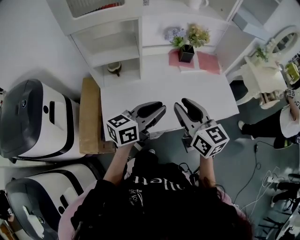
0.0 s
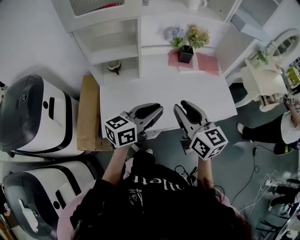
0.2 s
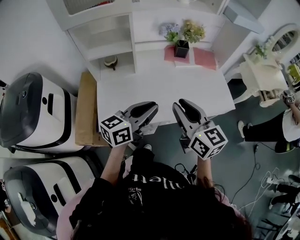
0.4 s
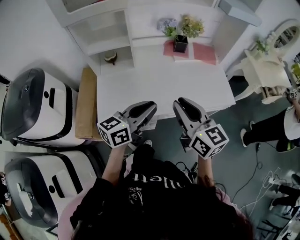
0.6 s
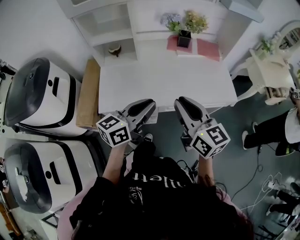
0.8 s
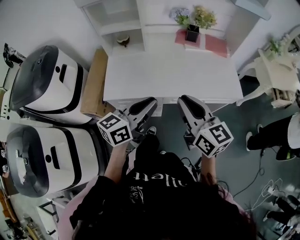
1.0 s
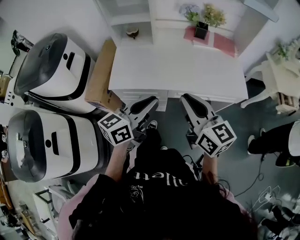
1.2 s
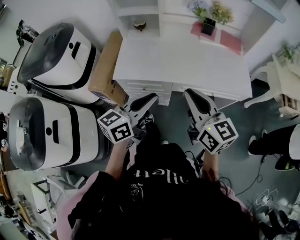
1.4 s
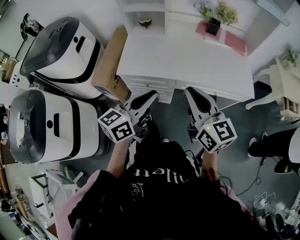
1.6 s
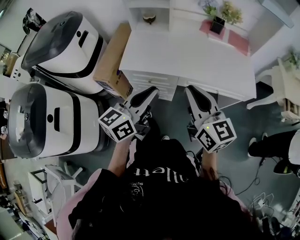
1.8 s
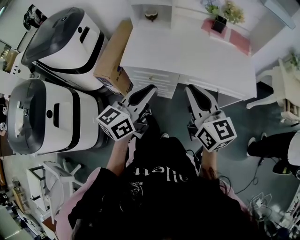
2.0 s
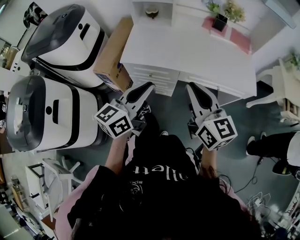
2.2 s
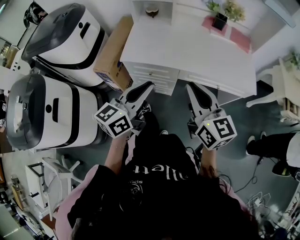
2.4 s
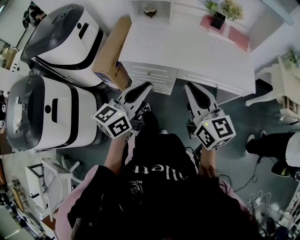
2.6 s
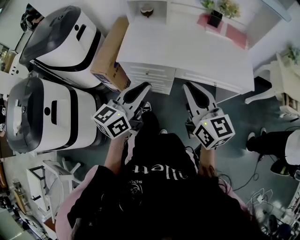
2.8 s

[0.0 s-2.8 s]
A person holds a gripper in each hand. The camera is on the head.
0.0 to 1.4 s: The left gripper heads backward, covering about 25 cm, and turns by approximately 20 degrees; the right gripper goes some 25 cm backward and to the right, and closes.
1.4 to 2.8 s: The grippers both shift backward by some 5 cm.

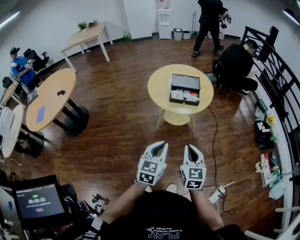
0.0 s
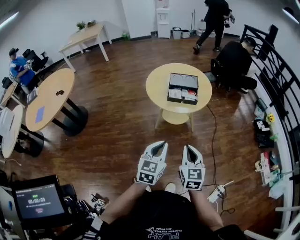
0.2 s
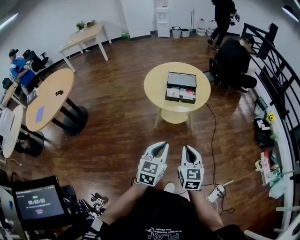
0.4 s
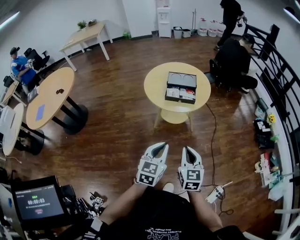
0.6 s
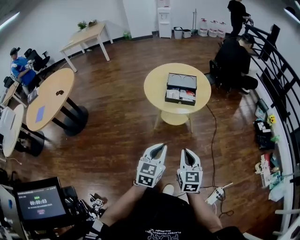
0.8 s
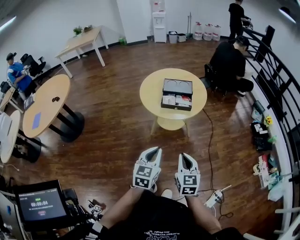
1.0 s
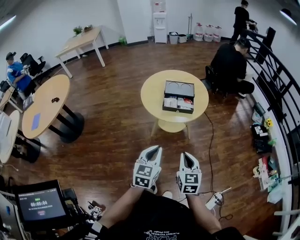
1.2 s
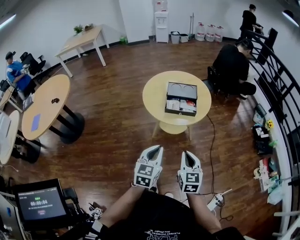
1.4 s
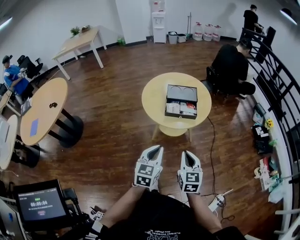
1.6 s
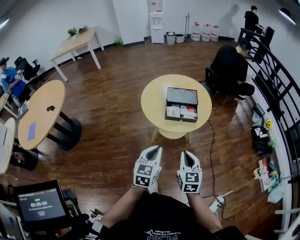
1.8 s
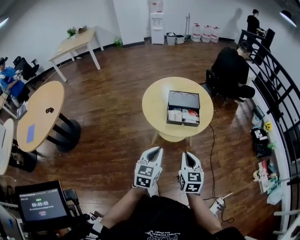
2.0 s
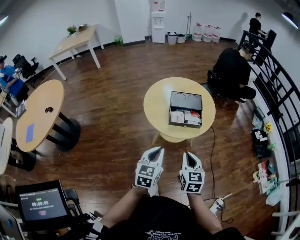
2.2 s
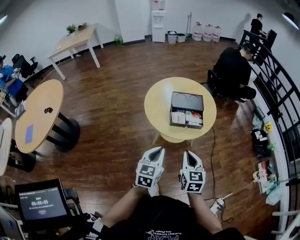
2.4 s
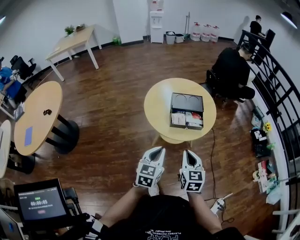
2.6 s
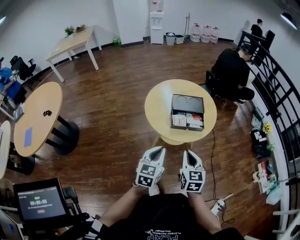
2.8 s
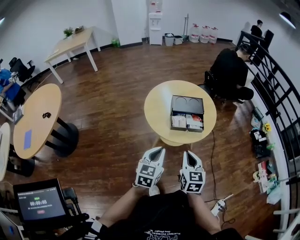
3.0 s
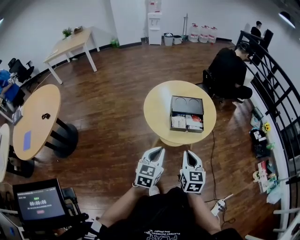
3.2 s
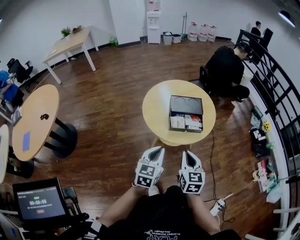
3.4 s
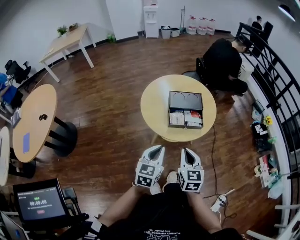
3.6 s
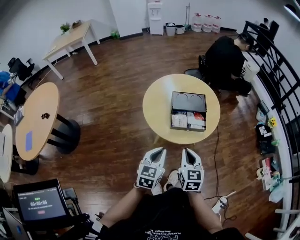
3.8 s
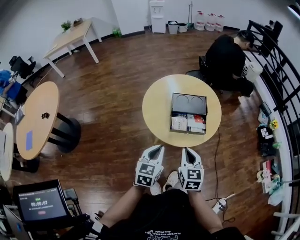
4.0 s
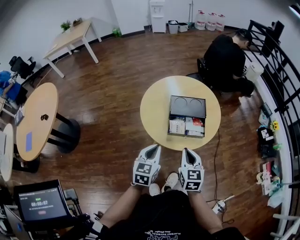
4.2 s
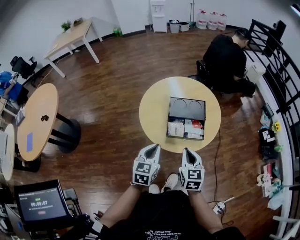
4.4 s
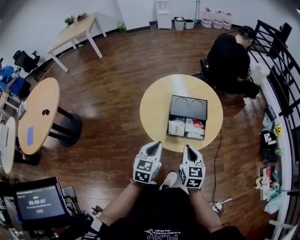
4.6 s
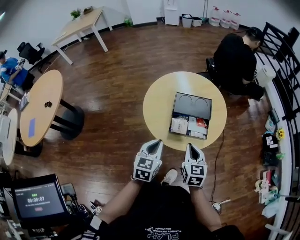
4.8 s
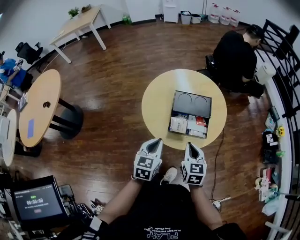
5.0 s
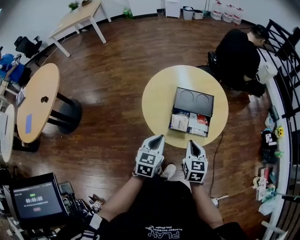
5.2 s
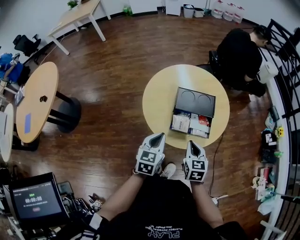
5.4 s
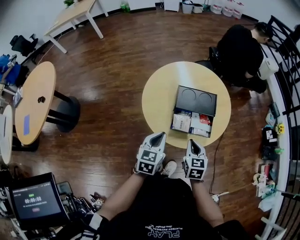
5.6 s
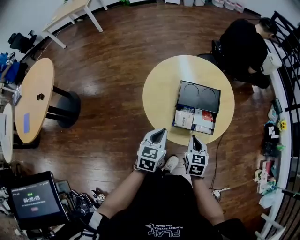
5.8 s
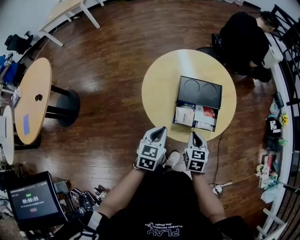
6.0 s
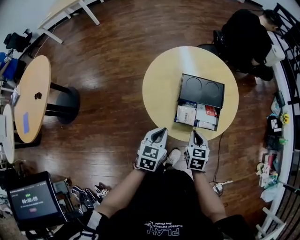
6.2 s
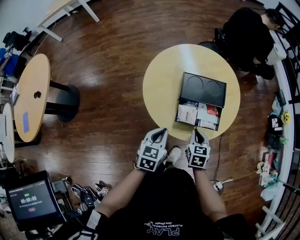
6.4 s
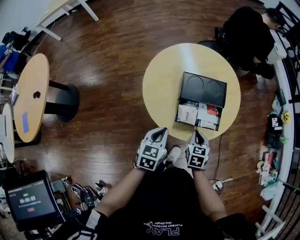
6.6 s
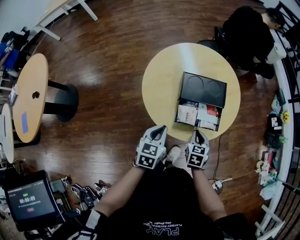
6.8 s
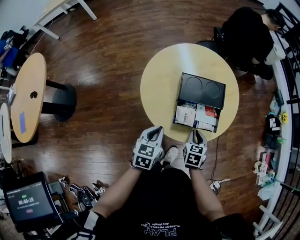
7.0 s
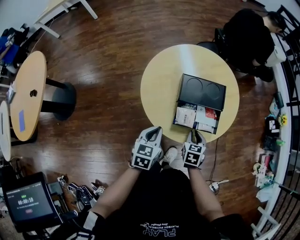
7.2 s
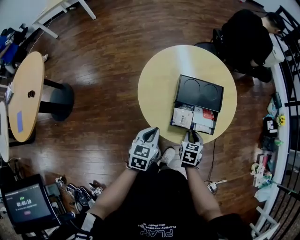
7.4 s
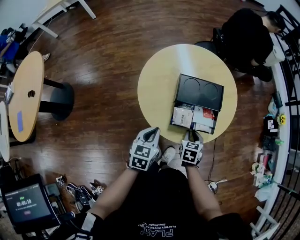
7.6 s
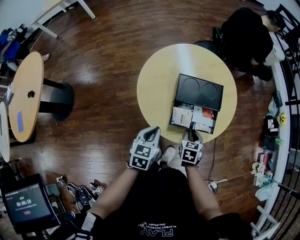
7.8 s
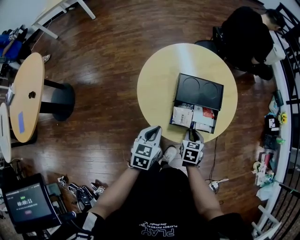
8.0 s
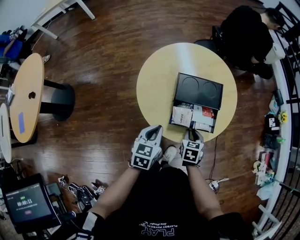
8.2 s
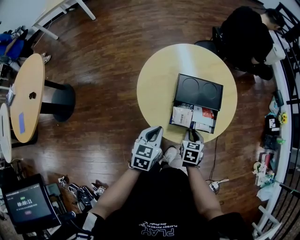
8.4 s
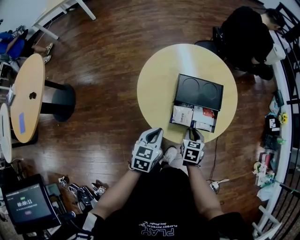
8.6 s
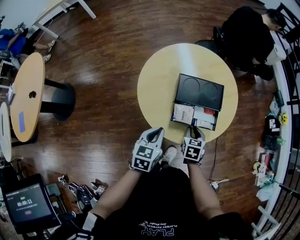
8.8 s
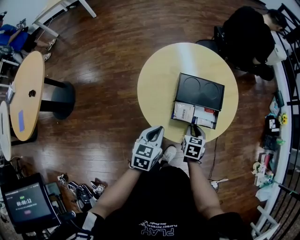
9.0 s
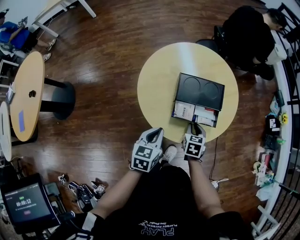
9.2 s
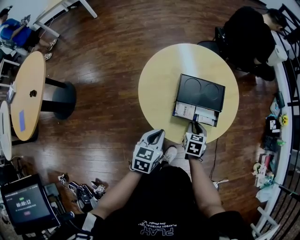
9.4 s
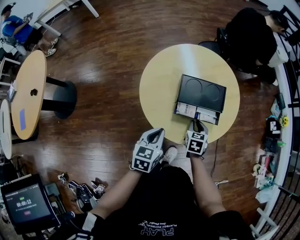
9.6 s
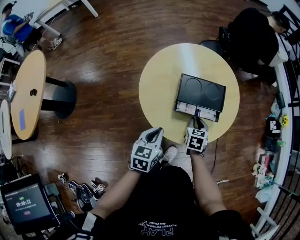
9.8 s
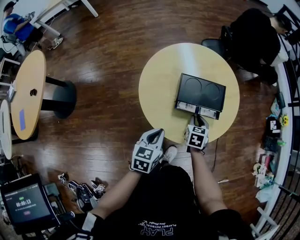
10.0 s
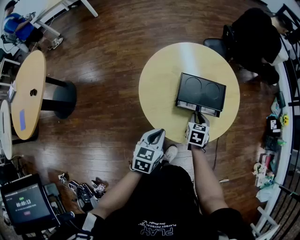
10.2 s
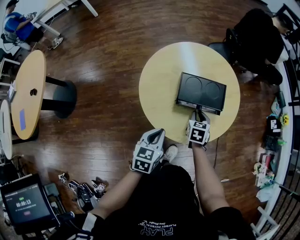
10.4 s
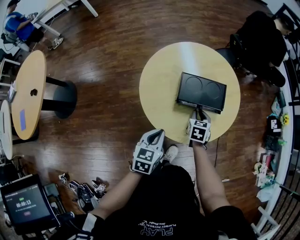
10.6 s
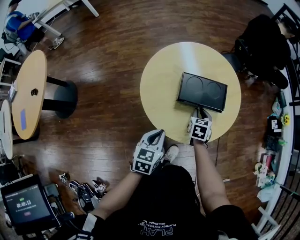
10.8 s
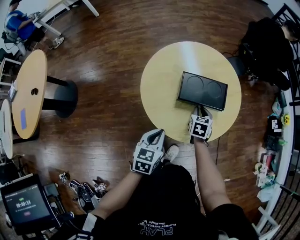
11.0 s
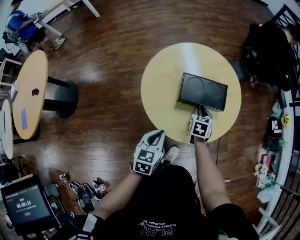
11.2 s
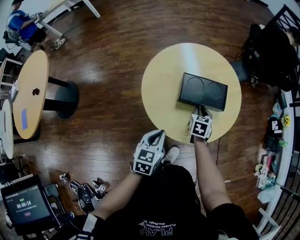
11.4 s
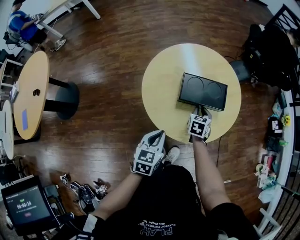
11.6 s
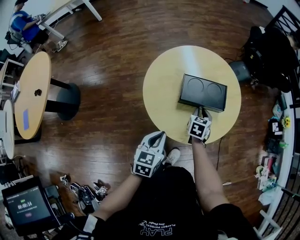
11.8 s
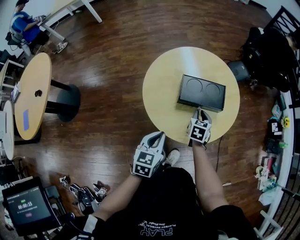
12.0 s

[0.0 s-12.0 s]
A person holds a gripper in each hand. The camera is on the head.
0.0 to 1.6 s: The grippers both shift forward by approximately 10 cm.
1.6 to 3.0 s: Both grippers move forward and to the left, approximately 10 cm.
3.0 to 4.4 s: Both grippers travel together forward, about 15 cm.
4.4 to 6.0 s: The grippers both shift downward and forward by some 15 cm.
6.0 to 7.6 s: The right gripper moves downward, some 10 cm.
7.6 to 9.0 s: The grippers stay close to where they were, moving slightly.
9.0 to 10.4 s: The right gripper travels forward by some 5 cm.
10.4 to 12.0 s: The grippers stay close to where they were, moving slightly.

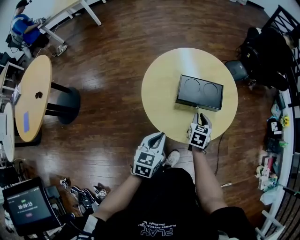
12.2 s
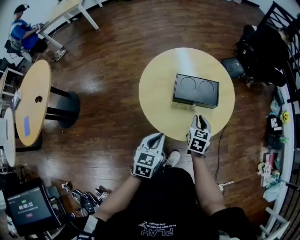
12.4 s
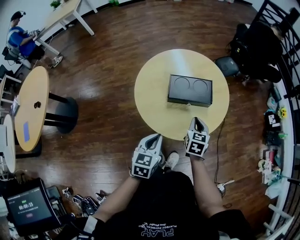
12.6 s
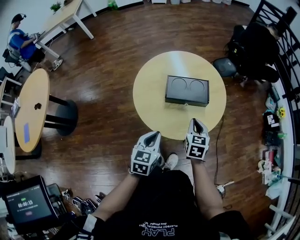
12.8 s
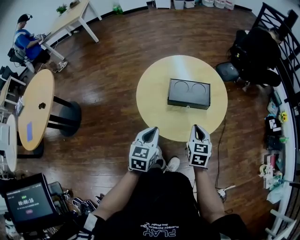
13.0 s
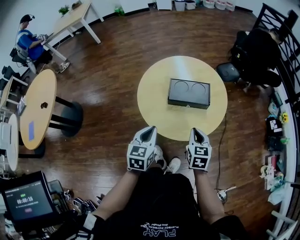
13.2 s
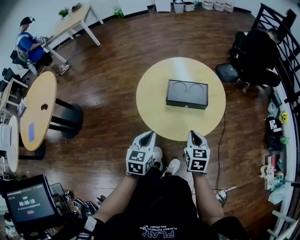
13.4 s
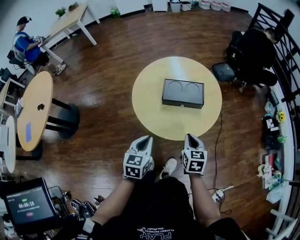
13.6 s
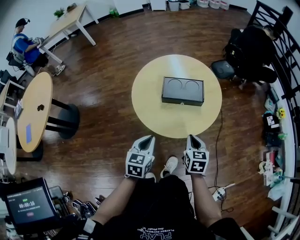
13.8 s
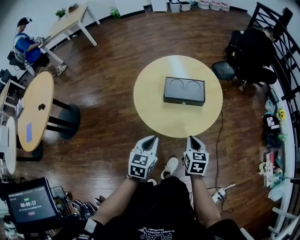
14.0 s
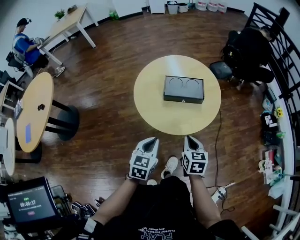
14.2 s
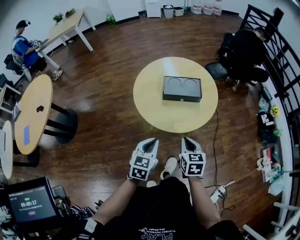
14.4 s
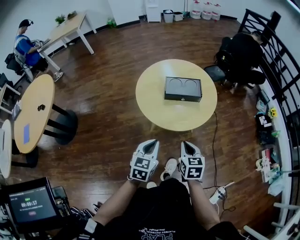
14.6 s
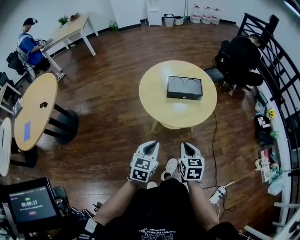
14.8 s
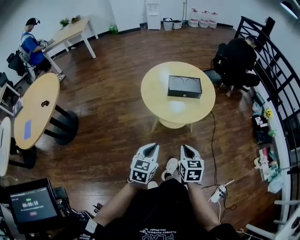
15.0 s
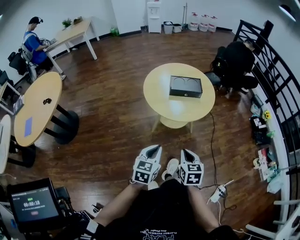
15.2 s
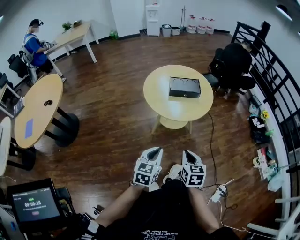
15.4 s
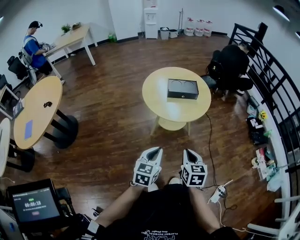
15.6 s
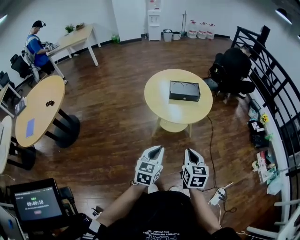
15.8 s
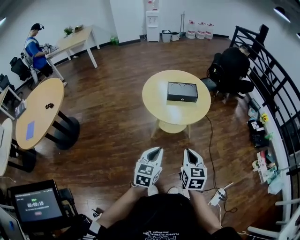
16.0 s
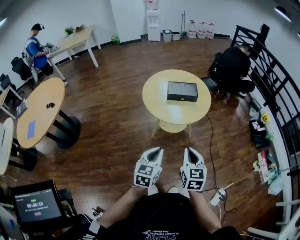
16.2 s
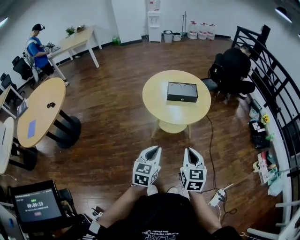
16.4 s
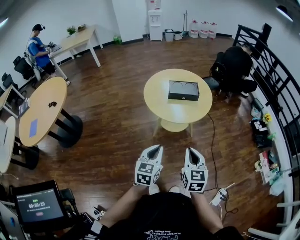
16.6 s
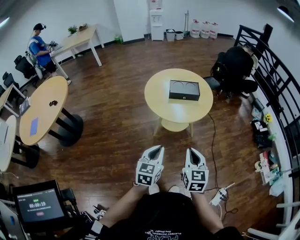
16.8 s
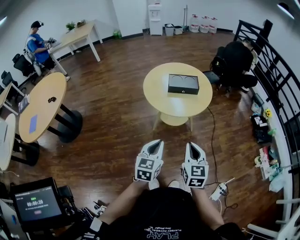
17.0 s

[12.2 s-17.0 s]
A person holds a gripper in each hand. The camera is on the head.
12.2 to 13.8 s: The left gripper goes some 5 cm backward; the right gripper moves backward and upward, roughly 20 cm.
13.8 to 15.4 s: Both grippers move backward, approximately 30 cm.
15.4 to 17.0 s: The right gripper moves upward, about 5 cm.

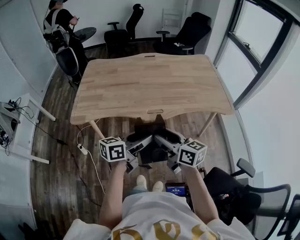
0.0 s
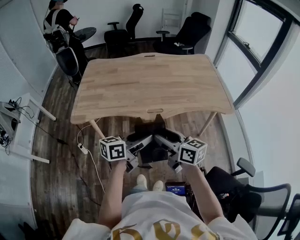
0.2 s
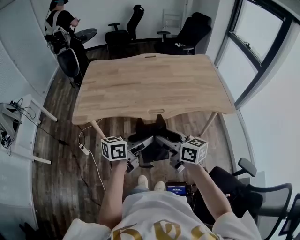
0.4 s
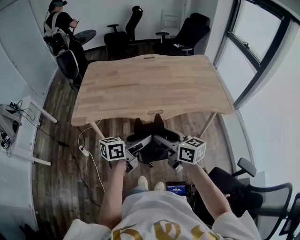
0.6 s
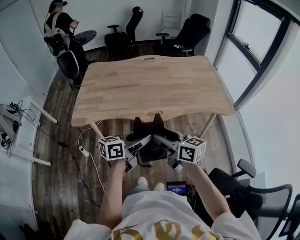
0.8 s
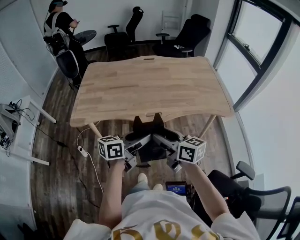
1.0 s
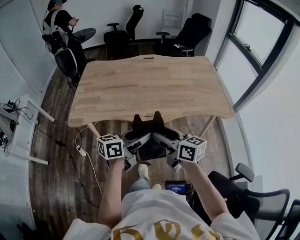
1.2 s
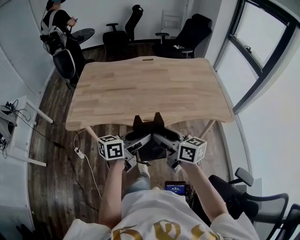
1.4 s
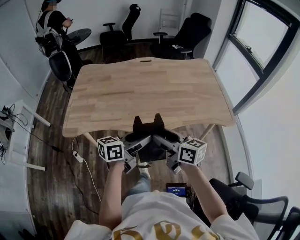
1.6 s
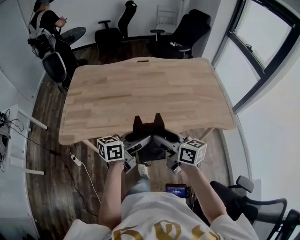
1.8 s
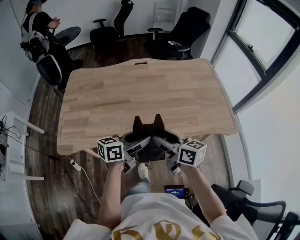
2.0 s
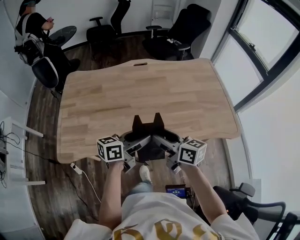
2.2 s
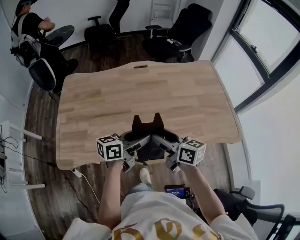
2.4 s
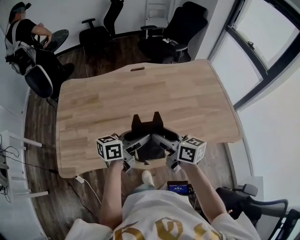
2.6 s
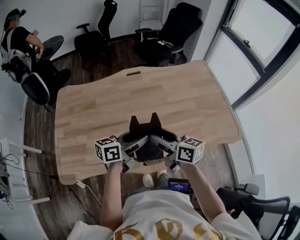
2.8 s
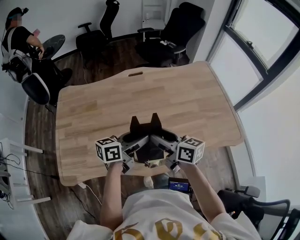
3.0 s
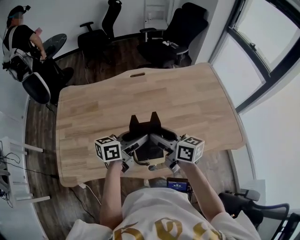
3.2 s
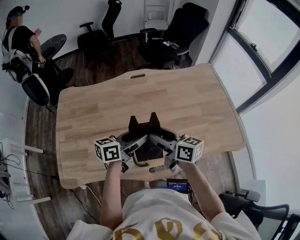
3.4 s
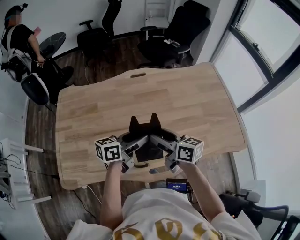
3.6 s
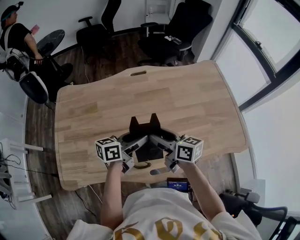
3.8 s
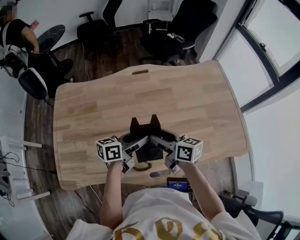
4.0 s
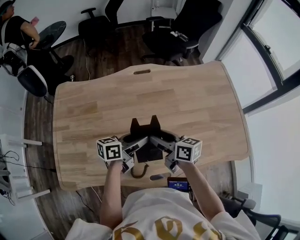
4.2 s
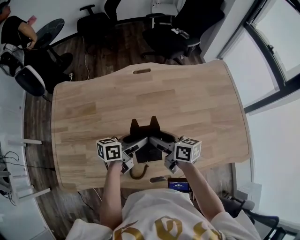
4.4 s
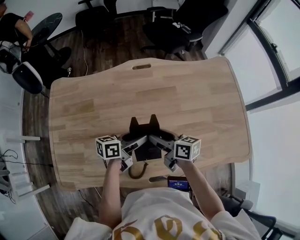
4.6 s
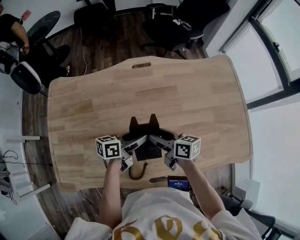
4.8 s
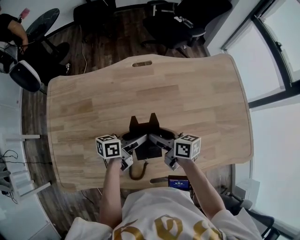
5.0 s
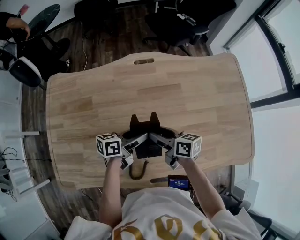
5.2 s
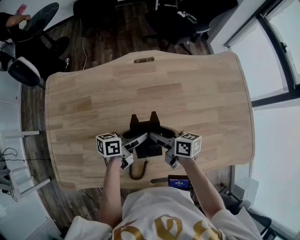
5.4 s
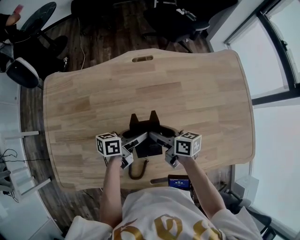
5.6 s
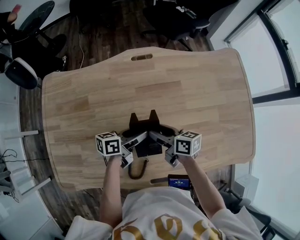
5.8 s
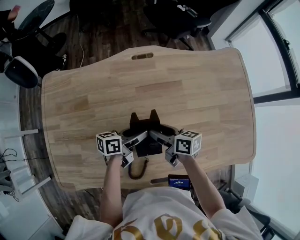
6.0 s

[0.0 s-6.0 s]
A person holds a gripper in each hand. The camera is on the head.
0.0 to 1.6 s: The two grippers go about 10 cm forward.
1.6 to 3.0 s: Both grippers move forward, roughly 30 cm.
3.0 to 4.4 s: Both grippers move forward and downward, approximately 15 cm.
4.4 to 6.0 s: The grippers both shift downward and forward by approximately 10 cm.
